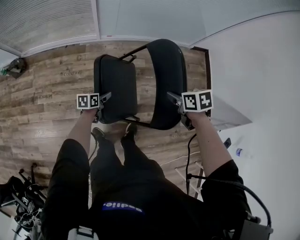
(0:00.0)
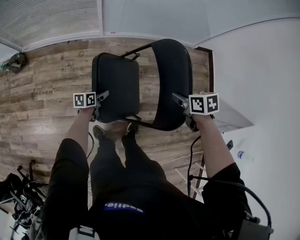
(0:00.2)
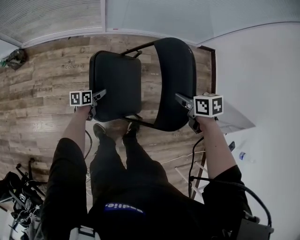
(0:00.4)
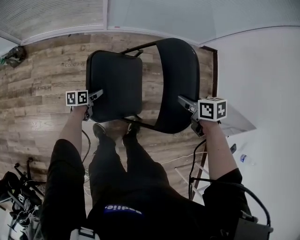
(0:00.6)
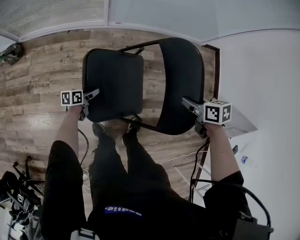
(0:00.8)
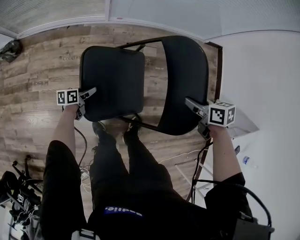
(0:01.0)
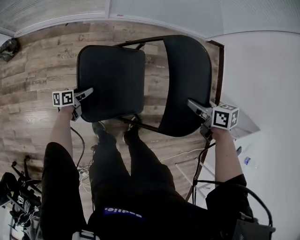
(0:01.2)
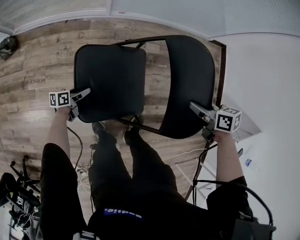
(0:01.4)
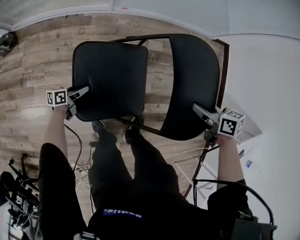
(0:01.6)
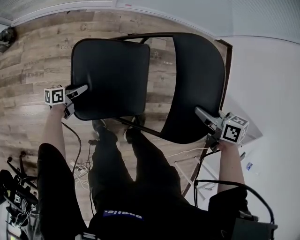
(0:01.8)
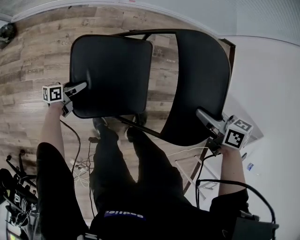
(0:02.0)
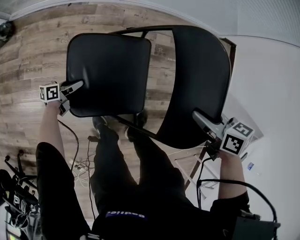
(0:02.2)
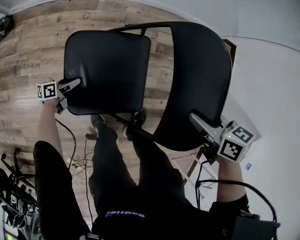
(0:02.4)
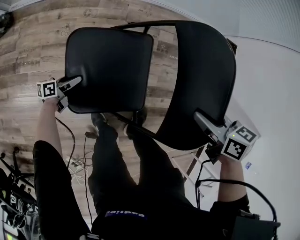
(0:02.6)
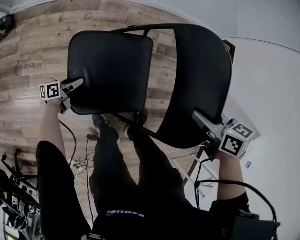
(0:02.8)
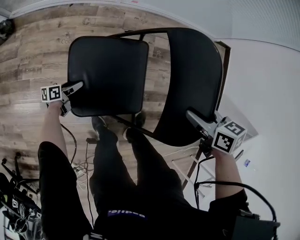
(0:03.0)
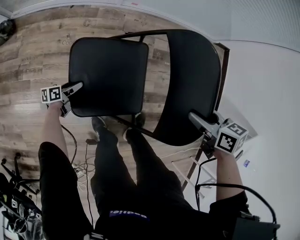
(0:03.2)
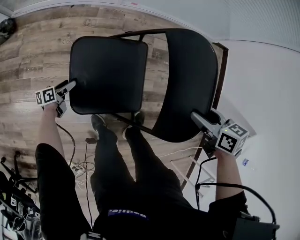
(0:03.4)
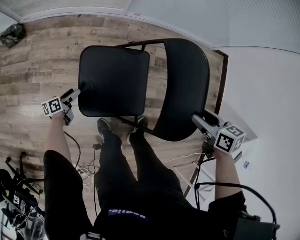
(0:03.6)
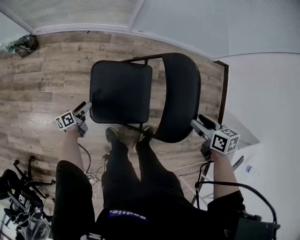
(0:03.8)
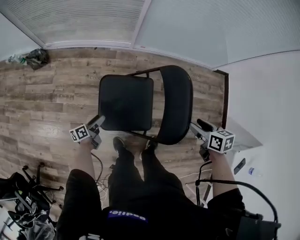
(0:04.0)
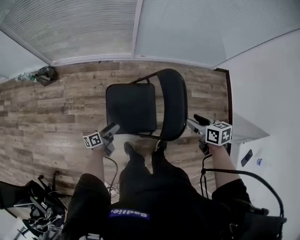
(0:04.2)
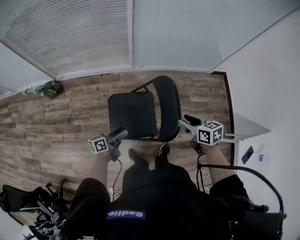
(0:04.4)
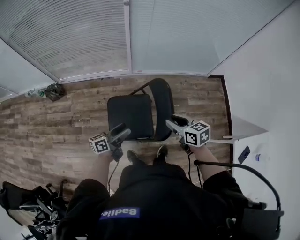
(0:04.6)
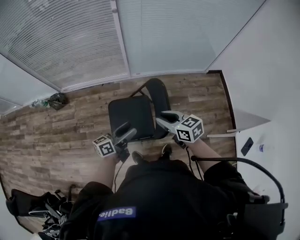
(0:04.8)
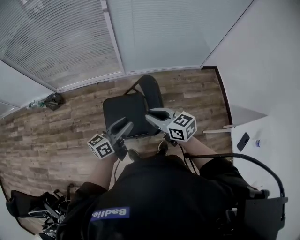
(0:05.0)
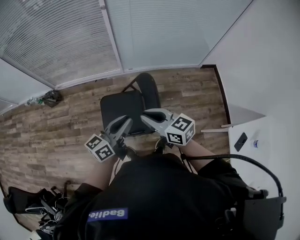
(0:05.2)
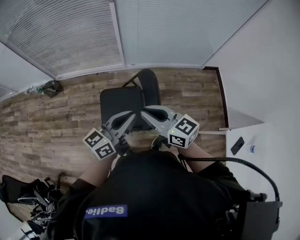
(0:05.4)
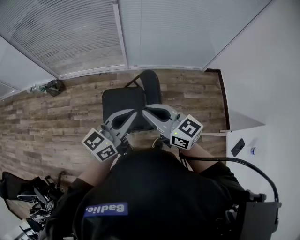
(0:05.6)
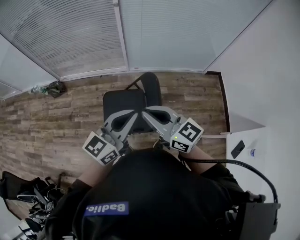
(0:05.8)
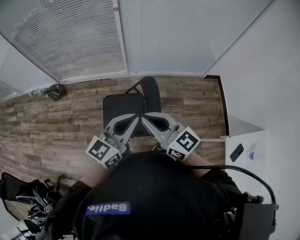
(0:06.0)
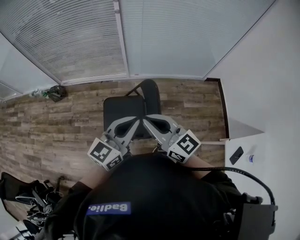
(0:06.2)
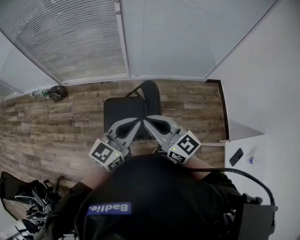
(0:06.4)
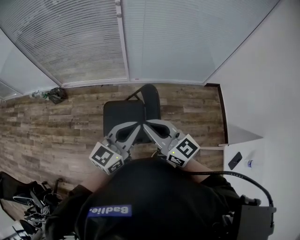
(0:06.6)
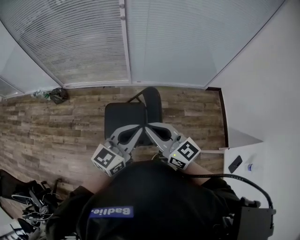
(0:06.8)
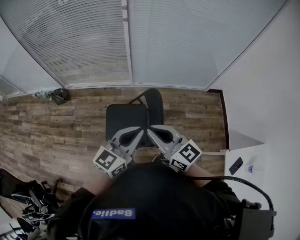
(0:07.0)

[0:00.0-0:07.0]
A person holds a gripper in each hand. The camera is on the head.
0:00.0 to 0:01.4: The right gripper shifts about 10 cm downward. Meanwhile the left gripper travels to the left and downward by about 25 cm.
0:01.4 to 0:02.8: The left gripper is displaced to the left and downward by approximately 15 cm. Meanwhile the right gripper travels to the left by some 15 cm.
0:02.8 to 0:04.2: The right gripper goes roughly 15 cm upward, and opens up; the left gripper heads upward, covering some 30 cm.
0:04.2 to 0:05.6: The right gripper heads upward, covering about 25 cm, tilts its fingers roughly 40 degrees upward, and closes. The left gripper moves upward and to the right, about 50 cm, twists roughly 50 degrees clockwise, seen from behind, and closes its fingers.
0:05.6 to 0:07.0: The grippers move only a little.

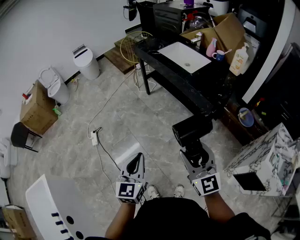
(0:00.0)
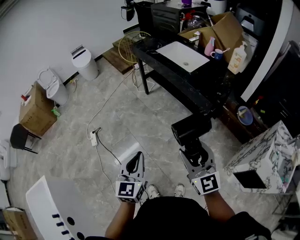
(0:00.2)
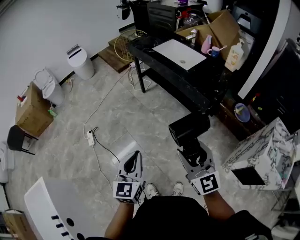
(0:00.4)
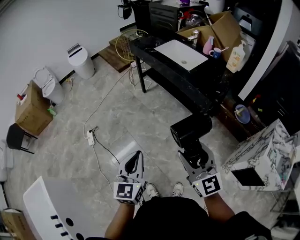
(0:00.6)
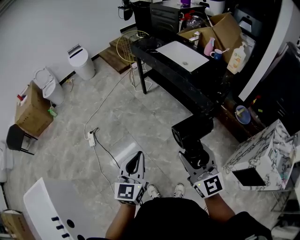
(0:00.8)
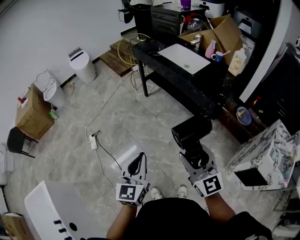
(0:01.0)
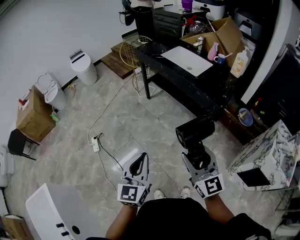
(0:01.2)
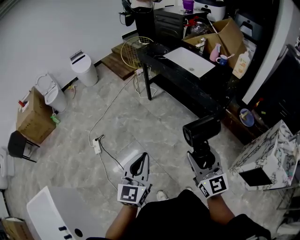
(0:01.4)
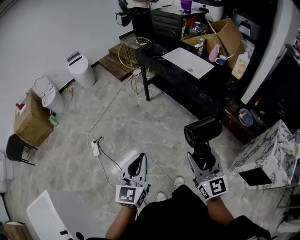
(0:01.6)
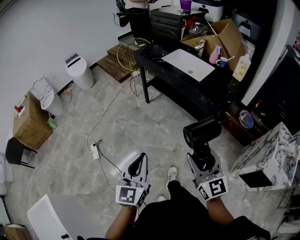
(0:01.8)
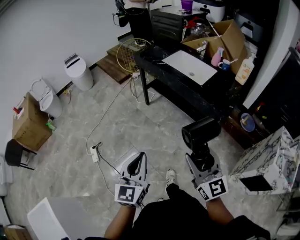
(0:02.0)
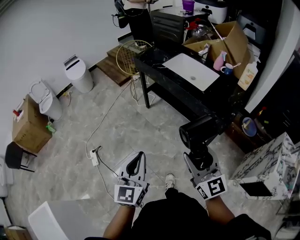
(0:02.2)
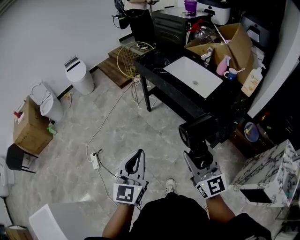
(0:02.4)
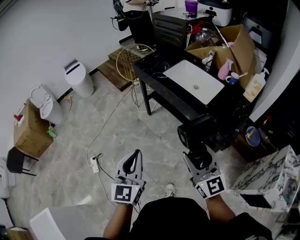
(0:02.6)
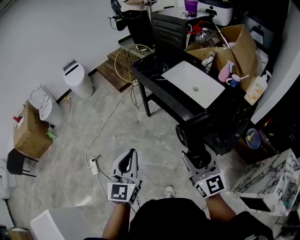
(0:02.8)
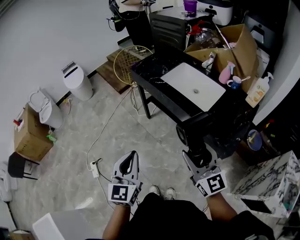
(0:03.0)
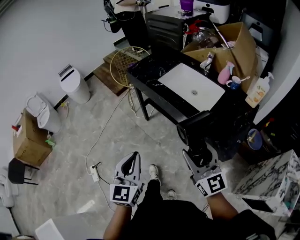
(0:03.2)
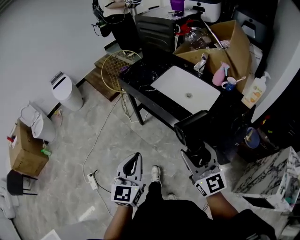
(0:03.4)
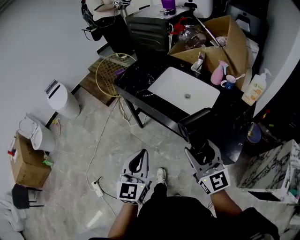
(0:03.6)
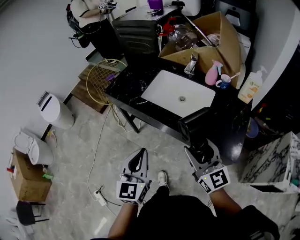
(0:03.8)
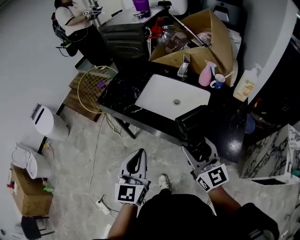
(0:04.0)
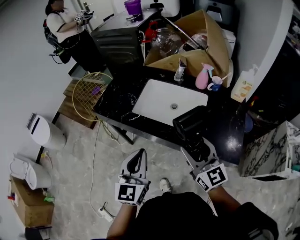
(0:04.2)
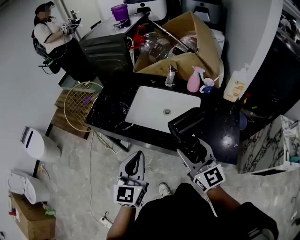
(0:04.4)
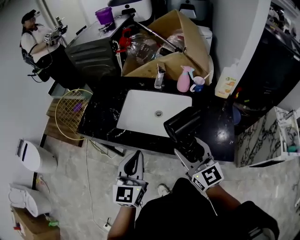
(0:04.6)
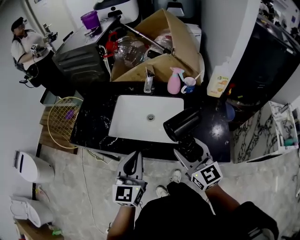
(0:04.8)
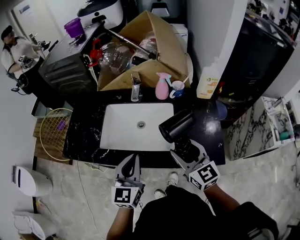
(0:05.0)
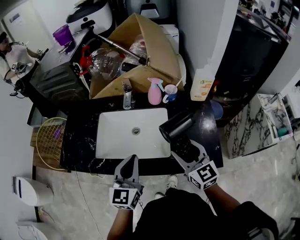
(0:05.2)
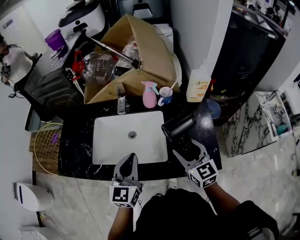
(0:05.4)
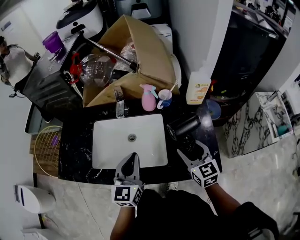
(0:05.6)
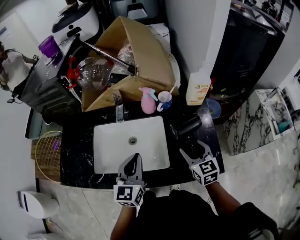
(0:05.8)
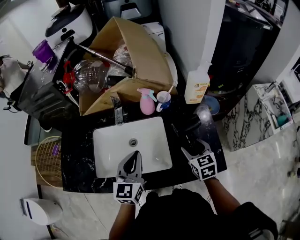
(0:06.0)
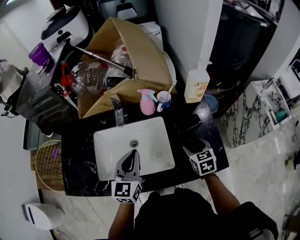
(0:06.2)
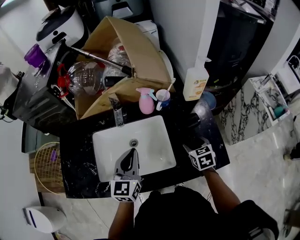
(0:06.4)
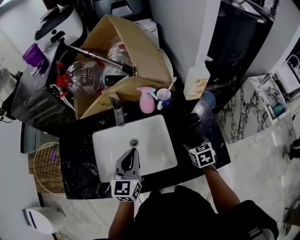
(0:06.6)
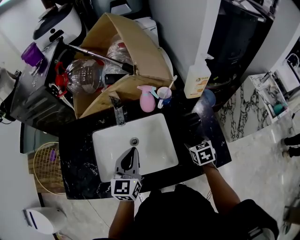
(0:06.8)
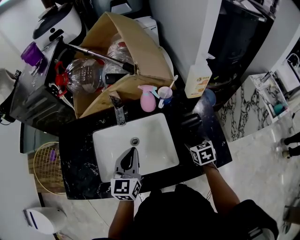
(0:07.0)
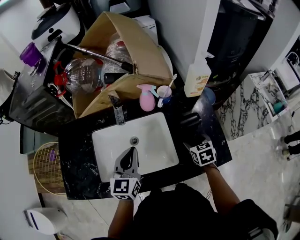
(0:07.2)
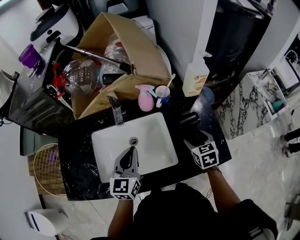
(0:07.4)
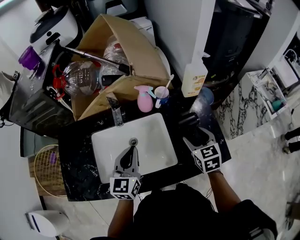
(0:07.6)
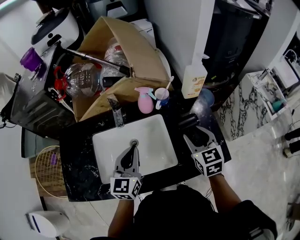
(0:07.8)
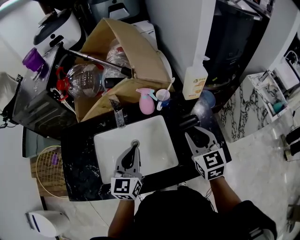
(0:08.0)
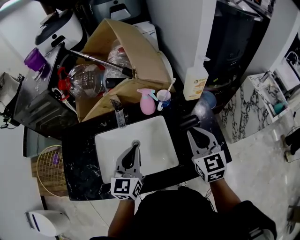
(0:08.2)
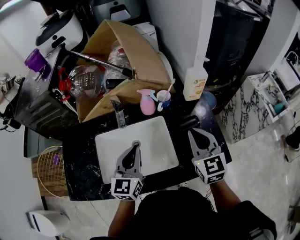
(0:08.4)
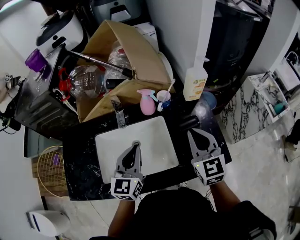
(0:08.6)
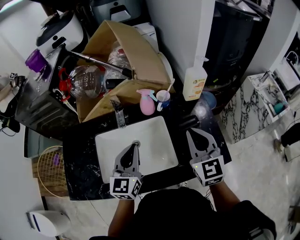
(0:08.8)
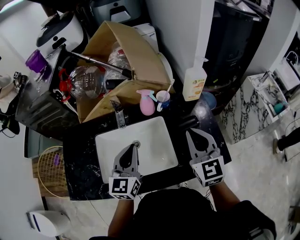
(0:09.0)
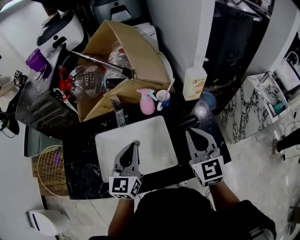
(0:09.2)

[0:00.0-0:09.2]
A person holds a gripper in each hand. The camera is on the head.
0:00.0 to 0:01.6: The two grippers go about 10 cm to the left.
0:01.6 to 0:03.0: Both grippers travel together forward, about 30 cm.
0:03.0 to 0:04.6: The right gripper moves some 25 cm, and turns by approximately 30 degrees. The left gripper shifts by roughly 35 cm, and changes its angle by approximately 40 degrees.
0:04.6 to 0:06.2: The right gripper changes place by approximately 30 cm, and points its fingers about 40 degrees further downward. Meanwhile the left gripper changes place by approximately 25 cm, and swivels some 20 degrees.
0:06.2 to 0:07.6: The right gripper is displaced upward by about 5 cm.
0:07.6 to 0:09.2: The right gripper travels upward by some 15 cm, rotates roughly 30 degrees, and closes its fingers.

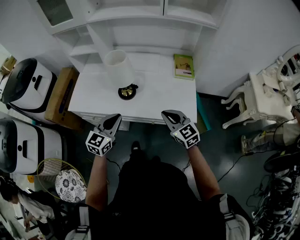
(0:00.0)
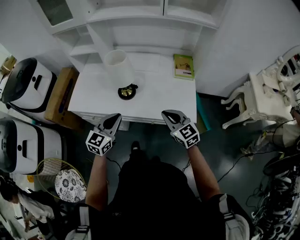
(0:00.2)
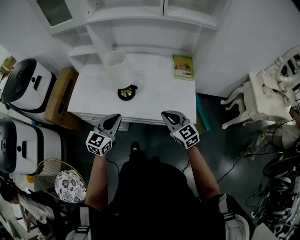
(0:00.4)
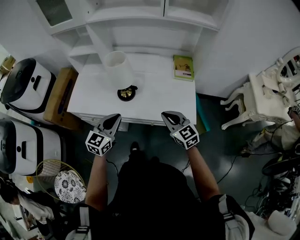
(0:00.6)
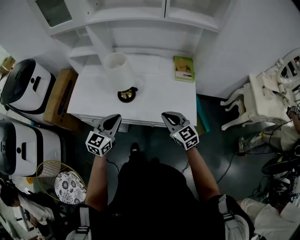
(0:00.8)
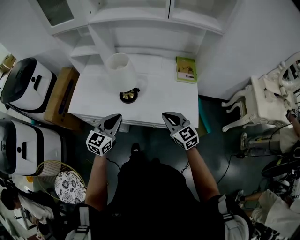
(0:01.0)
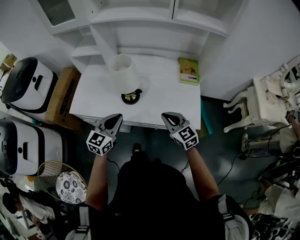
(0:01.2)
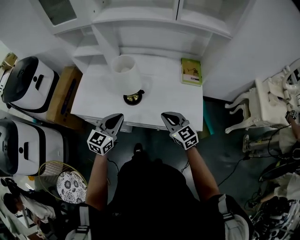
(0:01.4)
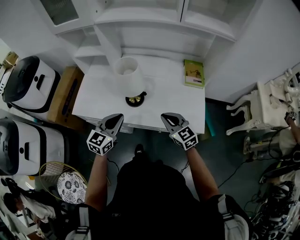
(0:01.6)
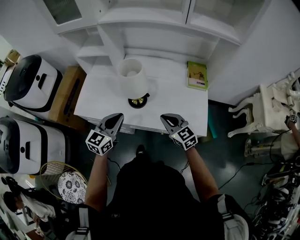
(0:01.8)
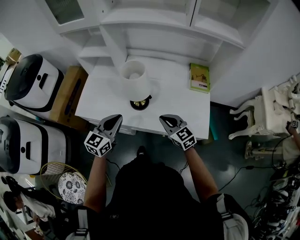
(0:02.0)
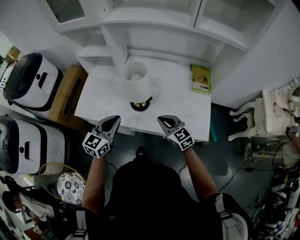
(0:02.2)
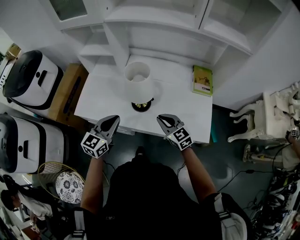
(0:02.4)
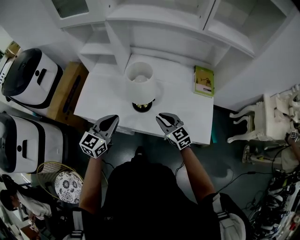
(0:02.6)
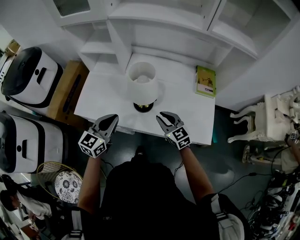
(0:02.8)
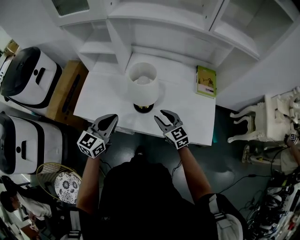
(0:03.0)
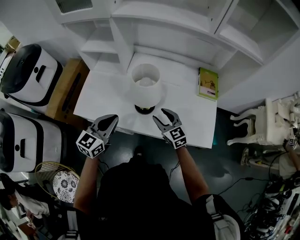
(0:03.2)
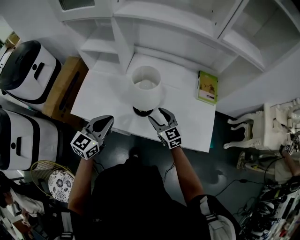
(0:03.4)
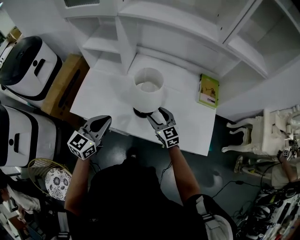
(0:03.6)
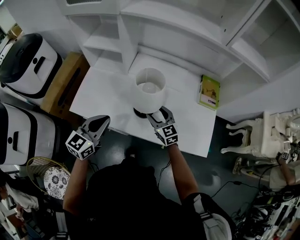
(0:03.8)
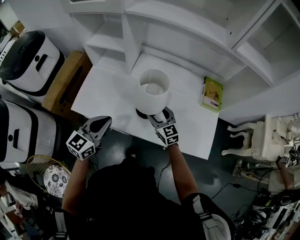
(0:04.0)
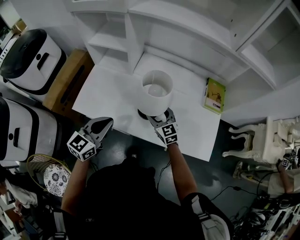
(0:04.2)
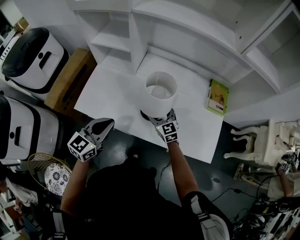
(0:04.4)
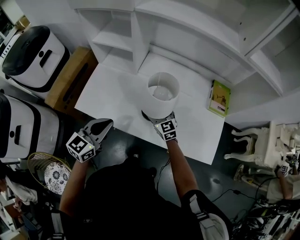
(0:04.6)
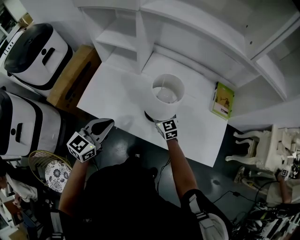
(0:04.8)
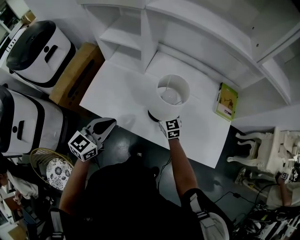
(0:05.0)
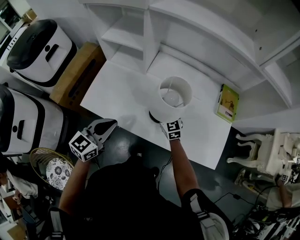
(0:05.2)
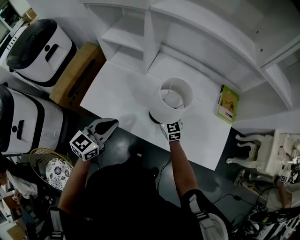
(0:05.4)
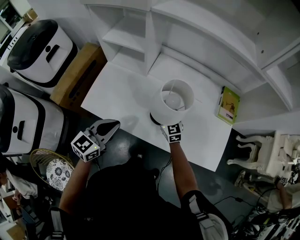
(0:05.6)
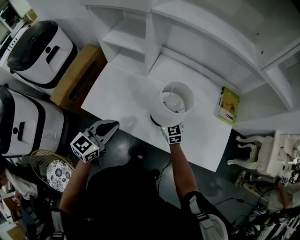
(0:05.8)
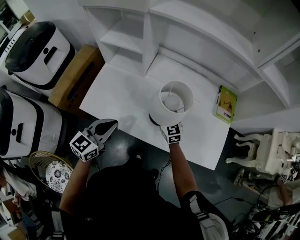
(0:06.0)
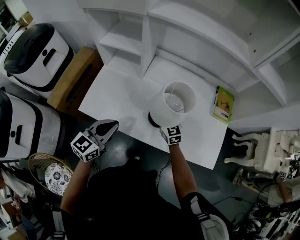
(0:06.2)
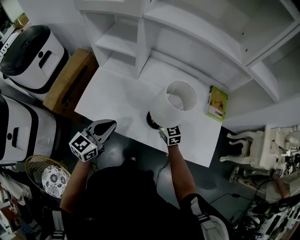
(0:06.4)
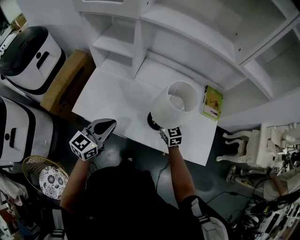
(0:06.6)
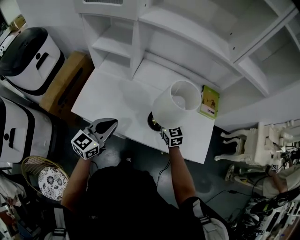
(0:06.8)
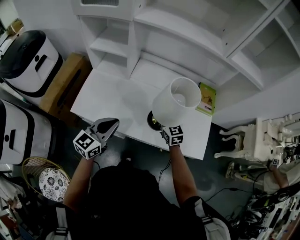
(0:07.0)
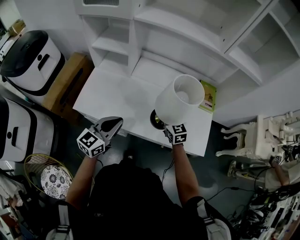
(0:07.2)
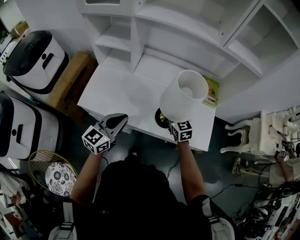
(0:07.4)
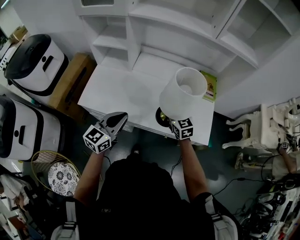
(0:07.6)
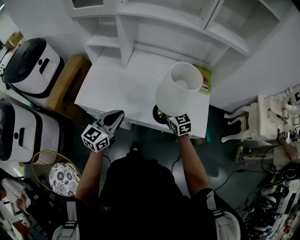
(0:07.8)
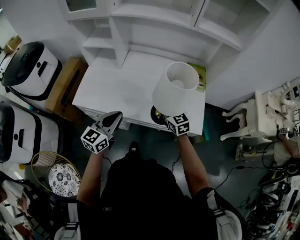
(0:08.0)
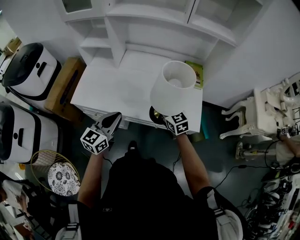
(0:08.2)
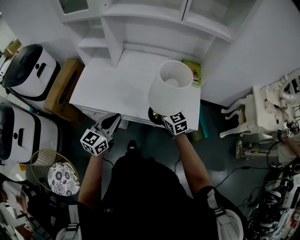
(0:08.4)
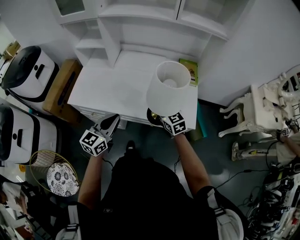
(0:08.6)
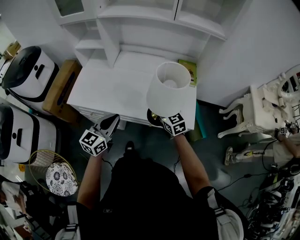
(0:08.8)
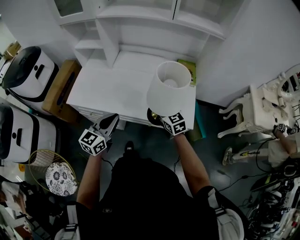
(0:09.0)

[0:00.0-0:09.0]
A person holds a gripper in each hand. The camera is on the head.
0:00.0 to 0:01.6: The grippers both shift forward by some 5 cm.
0:01.6 to 0:03.0: The left gripper goes roughly 10 cm to the left and forward, while the right gripper shifts some 15 cm forward, to the left and downward, and opens its fingers.
0:03.0 to 0:04.4: The right gripper shifts about 10 cm forward and to the left, and opens up.
0:04.4 to 0:06.0: The right gripper closes its fingers.
0:06.0 to 0:07.6: The left gripper moves to the right and backward, approximately 10 cm; the right gripper goes roughly 20 cm to the right, backward and upward.
0:07.6 to 0:09.0: Both grippers move to the right and backward, about 10 cm.
